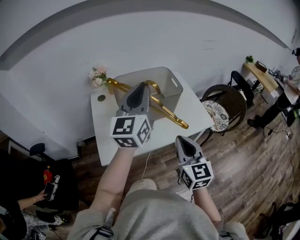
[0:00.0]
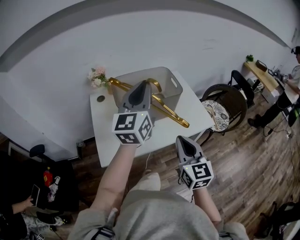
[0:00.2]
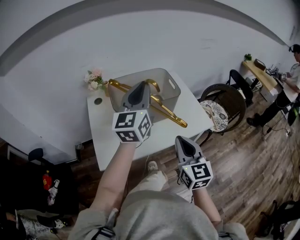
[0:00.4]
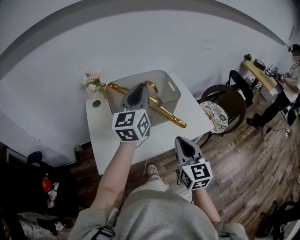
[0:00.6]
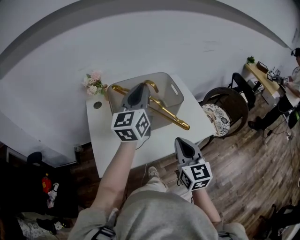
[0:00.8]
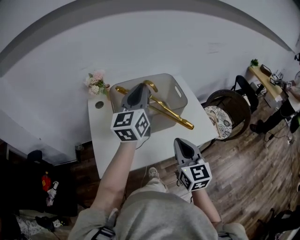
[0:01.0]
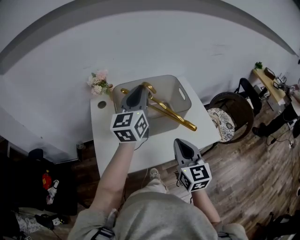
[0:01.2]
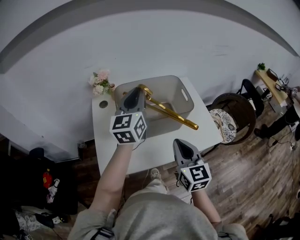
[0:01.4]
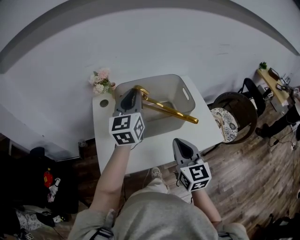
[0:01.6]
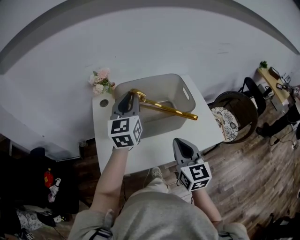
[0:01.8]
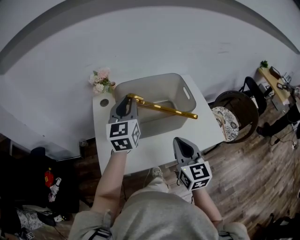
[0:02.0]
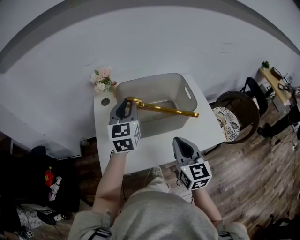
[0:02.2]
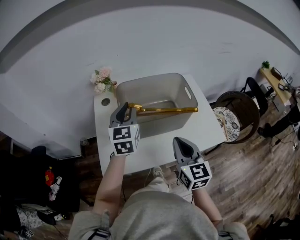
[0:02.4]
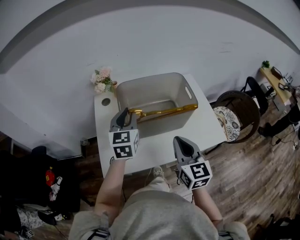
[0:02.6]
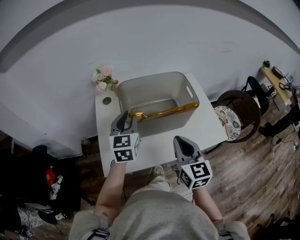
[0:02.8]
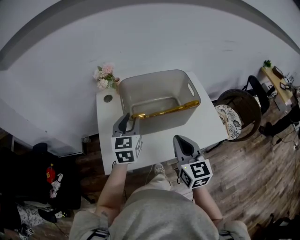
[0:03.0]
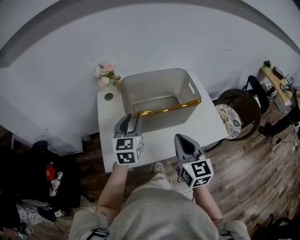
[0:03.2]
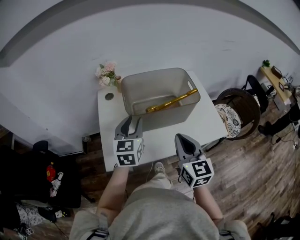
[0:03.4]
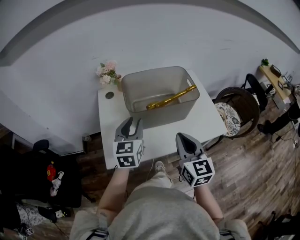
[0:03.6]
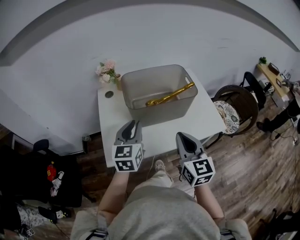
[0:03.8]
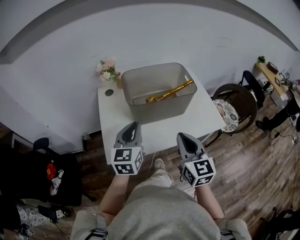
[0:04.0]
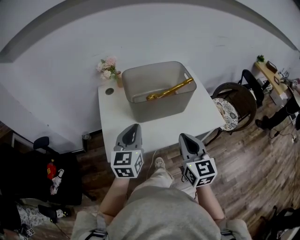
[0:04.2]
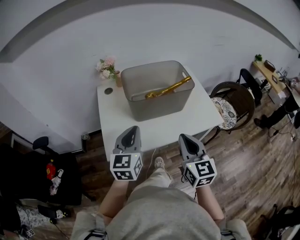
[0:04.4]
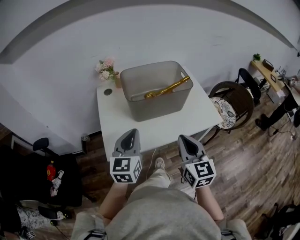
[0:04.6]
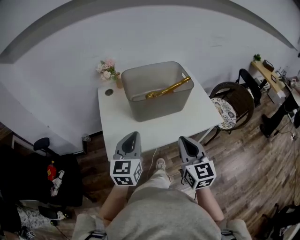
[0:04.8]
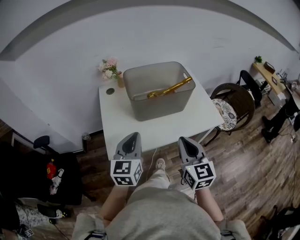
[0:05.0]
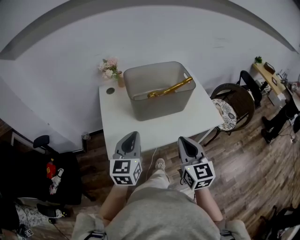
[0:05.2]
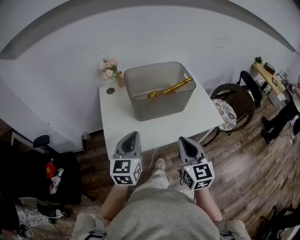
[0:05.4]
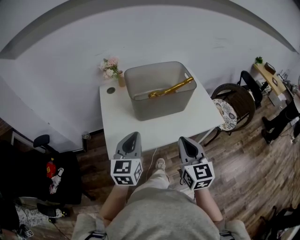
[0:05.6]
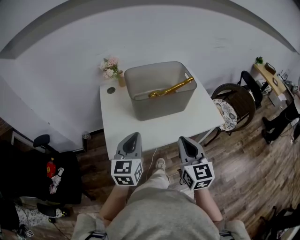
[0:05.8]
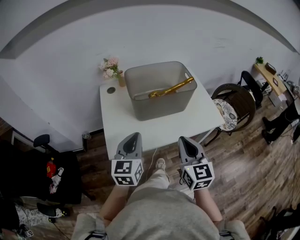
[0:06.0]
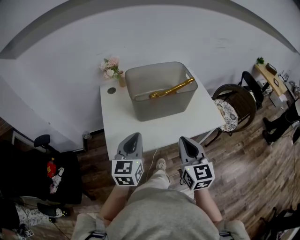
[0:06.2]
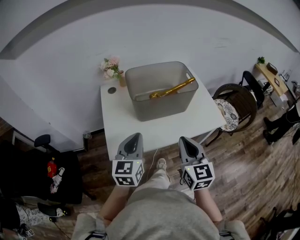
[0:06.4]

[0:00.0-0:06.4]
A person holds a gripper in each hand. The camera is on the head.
0:00.0 to 0:01.6: The left gripper travels forward and downward by about 15 cm. The right gripper heads forward, covering some 10 cm.
0:01.6 to 0:03.2: The left gripper travels downward and backward by some 15 cm, and opens.
0:03.2 to 0:04.8: Both grippers move backward, about 15 cm. The left gripper closes its fingers.
0:04.8 to 0:06.4: The grippers move only a little.

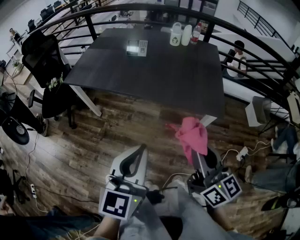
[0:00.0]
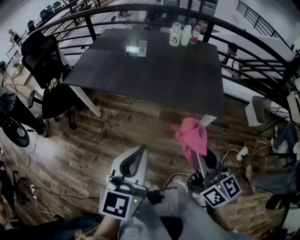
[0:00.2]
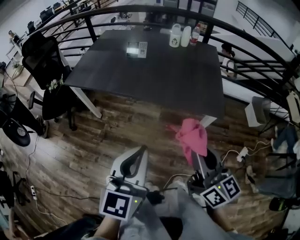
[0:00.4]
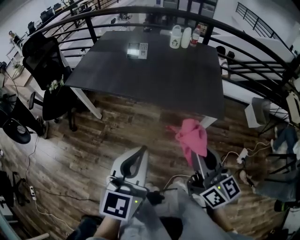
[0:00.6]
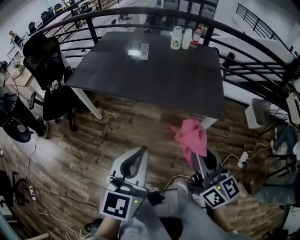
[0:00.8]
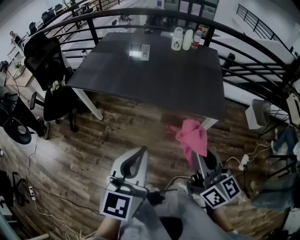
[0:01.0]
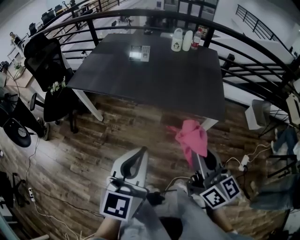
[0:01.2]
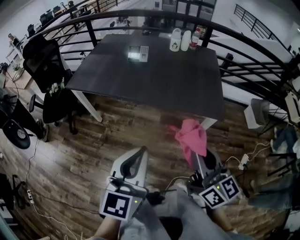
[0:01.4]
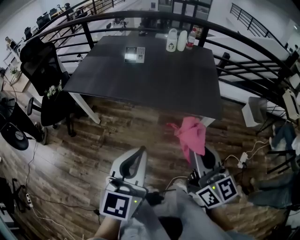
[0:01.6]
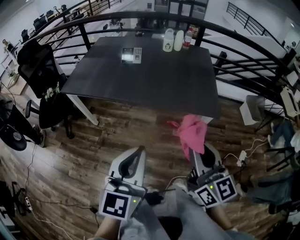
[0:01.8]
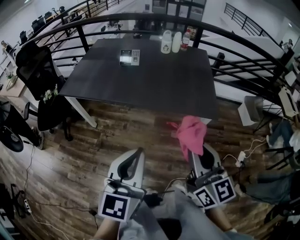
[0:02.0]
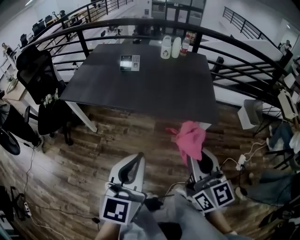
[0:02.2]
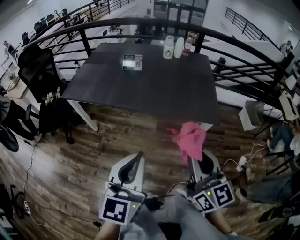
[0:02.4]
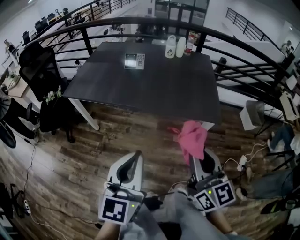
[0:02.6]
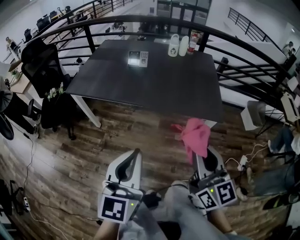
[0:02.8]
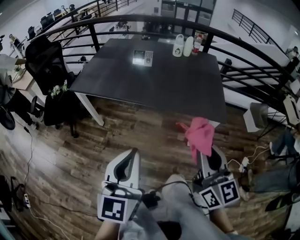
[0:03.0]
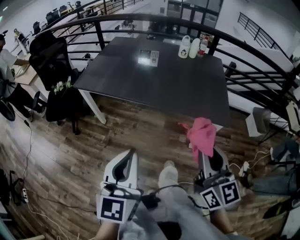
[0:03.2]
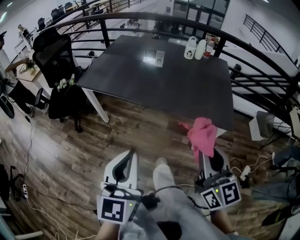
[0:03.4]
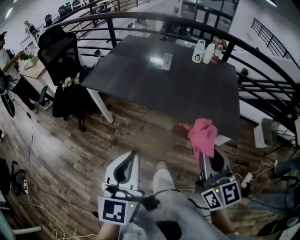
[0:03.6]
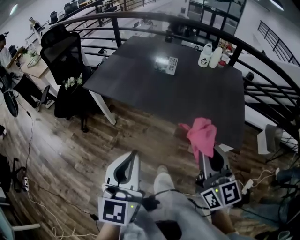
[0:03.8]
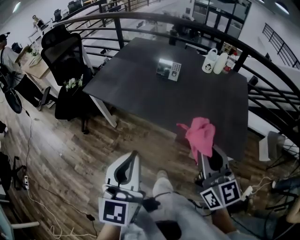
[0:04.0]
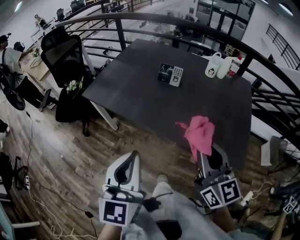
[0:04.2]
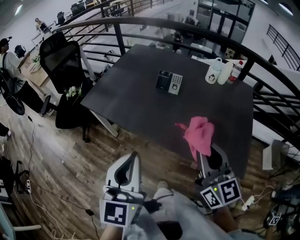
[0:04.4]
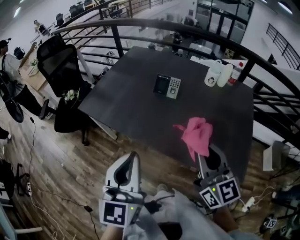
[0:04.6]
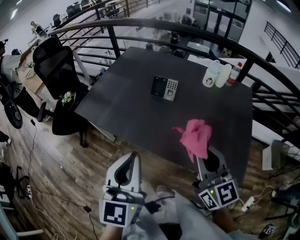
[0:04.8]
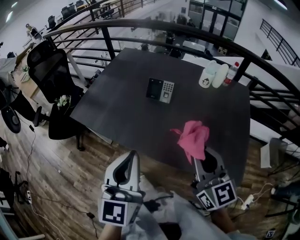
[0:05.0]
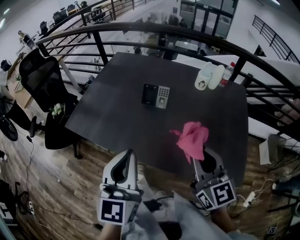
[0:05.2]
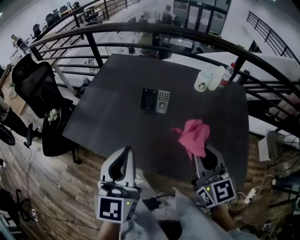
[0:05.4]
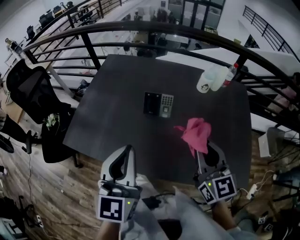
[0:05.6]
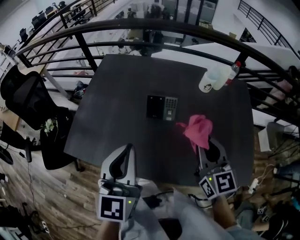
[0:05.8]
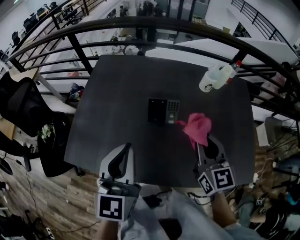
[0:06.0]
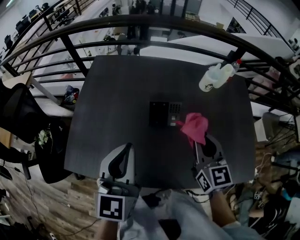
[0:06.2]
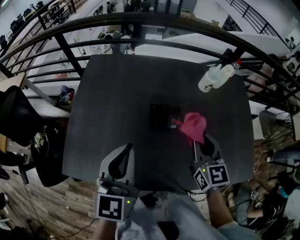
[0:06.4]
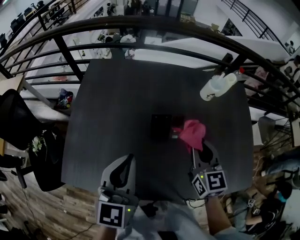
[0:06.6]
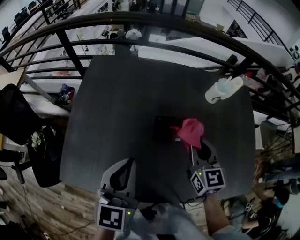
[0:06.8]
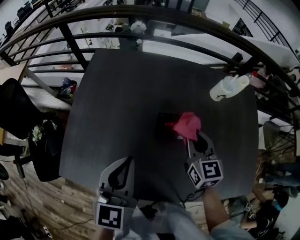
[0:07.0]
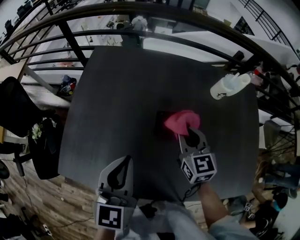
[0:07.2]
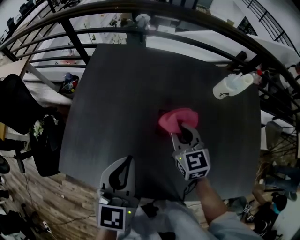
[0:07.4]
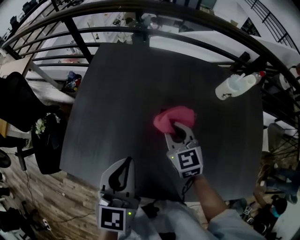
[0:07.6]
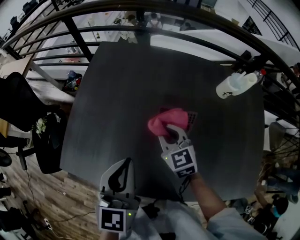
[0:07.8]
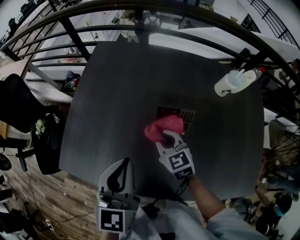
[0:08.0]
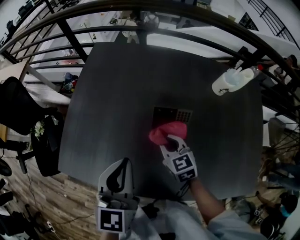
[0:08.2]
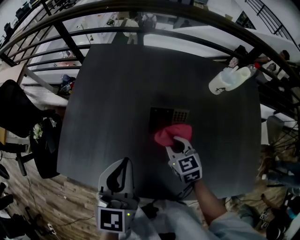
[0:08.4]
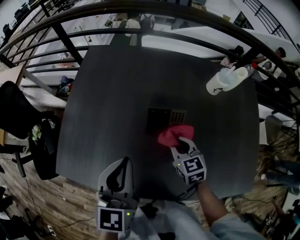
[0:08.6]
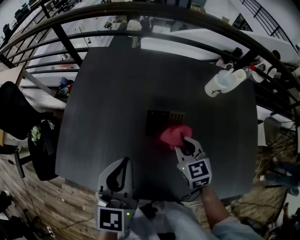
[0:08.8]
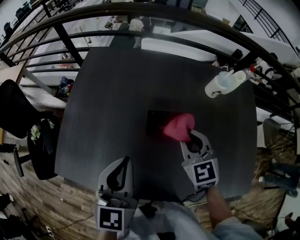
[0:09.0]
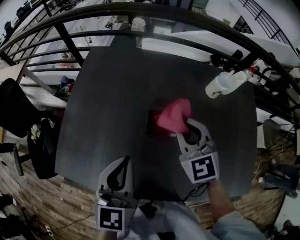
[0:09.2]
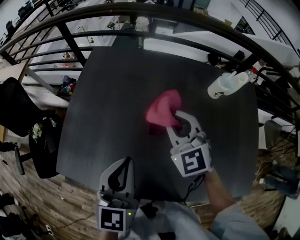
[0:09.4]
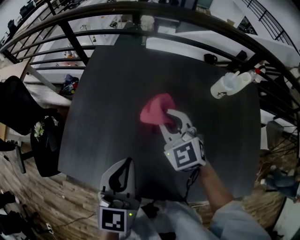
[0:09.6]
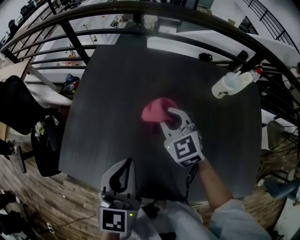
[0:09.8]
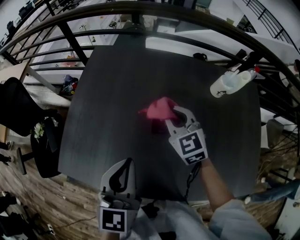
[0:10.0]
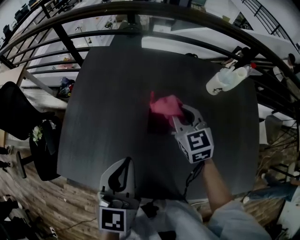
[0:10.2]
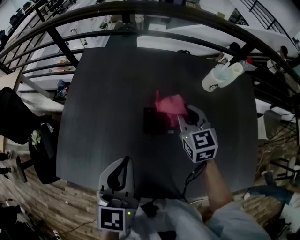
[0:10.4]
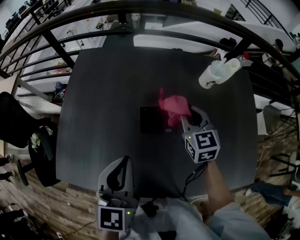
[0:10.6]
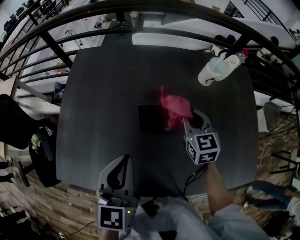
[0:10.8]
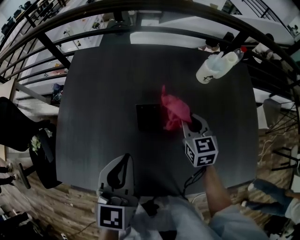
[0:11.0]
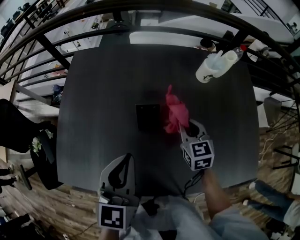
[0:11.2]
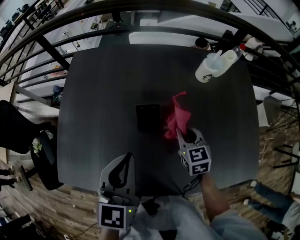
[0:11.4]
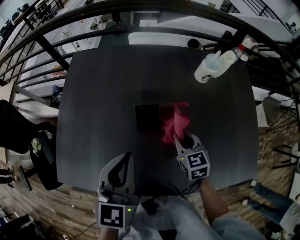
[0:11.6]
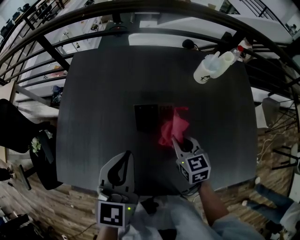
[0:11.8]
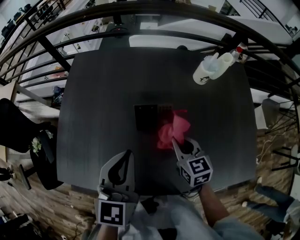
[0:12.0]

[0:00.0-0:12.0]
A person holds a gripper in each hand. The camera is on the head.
0:00.0 to 0:01.6: The grippers make only small movements.
0:01.6 to 0:03.0: The left gripper goes roughly 5 cm to the left.
0:03.0 to 0:04.4: Both grippers move forward, about 25 cm.
0:04.4 to 0:06.0: The grippers both shift forward by about 30 cm. The right gripper swivels approximately 30 degrees.
0:06.0 to 0:07.6: The right gripper goes some 25 cm to the left, forward and downward, and changes its angle by roughly 20 degrees. Meanwhile the left gripper shifts roughly 10 cm downward and forward.
0:07.6 to 0:09.0: The right gripper moves to the right, about 10 cm.
0:09.0 to 0:10.4: The right gripper goes about 5 cm forward, and goes to the left and returns, some 10 cm each way.
0:10.4 to 0:12.0: The right gripper moves backward and downward, roughly 15 cm.

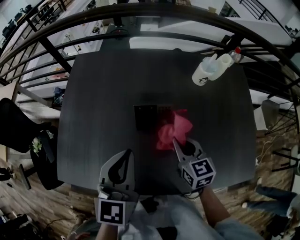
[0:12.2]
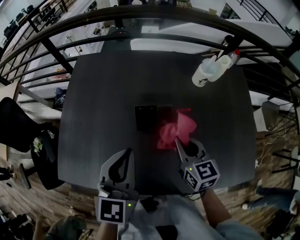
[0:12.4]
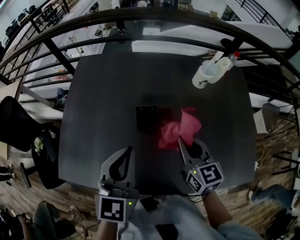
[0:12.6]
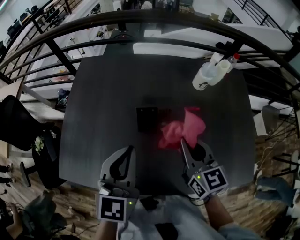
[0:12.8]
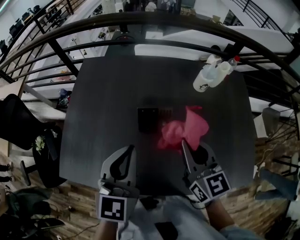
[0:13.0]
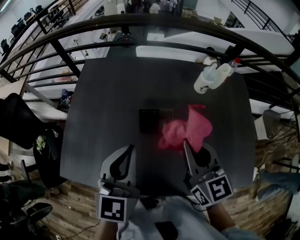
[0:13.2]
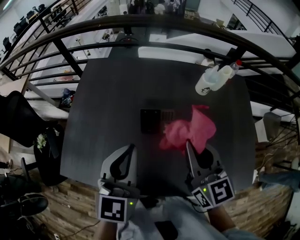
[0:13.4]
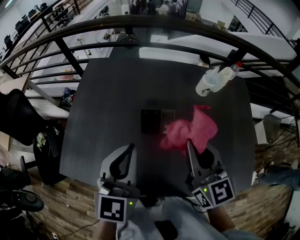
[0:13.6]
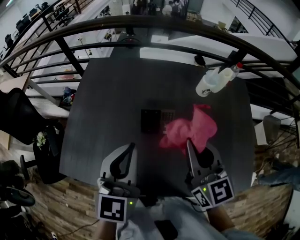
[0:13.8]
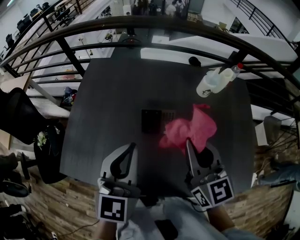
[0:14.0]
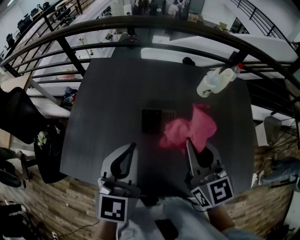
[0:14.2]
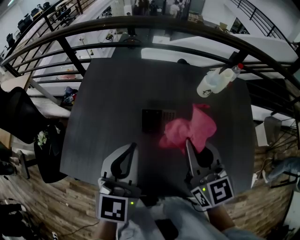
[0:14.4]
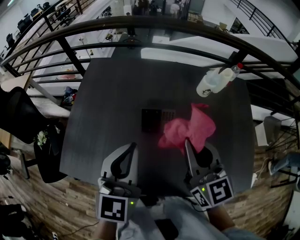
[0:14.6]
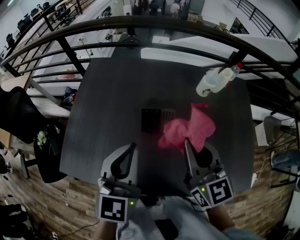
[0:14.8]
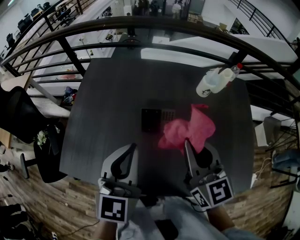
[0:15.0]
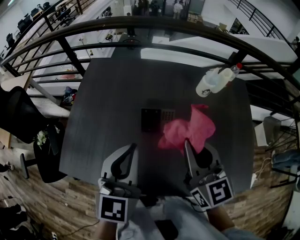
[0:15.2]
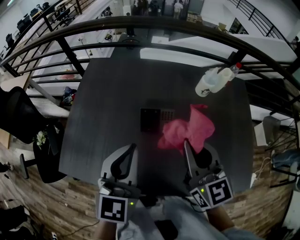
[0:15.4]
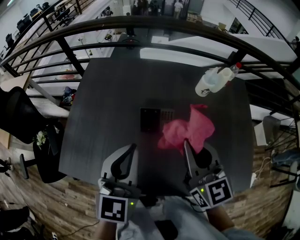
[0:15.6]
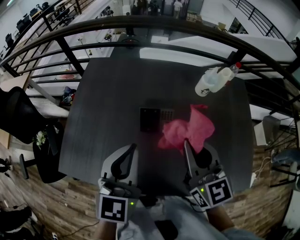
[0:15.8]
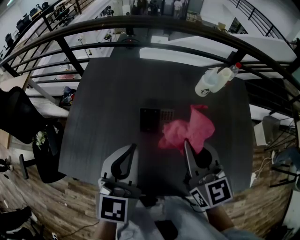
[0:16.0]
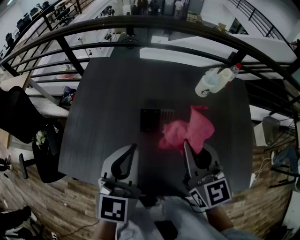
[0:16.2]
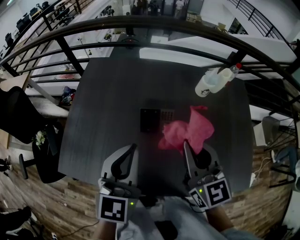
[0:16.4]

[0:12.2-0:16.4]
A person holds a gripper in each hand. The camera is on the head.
0:12.2 to 0:13.6: The right gripper goes roughly 15 cm upward, and swivels approximately 20 degrees, while the left gripper moves upward, approximately 5 cm.
0:13.6 to 0:16.4: Both grippers stay about where they are.

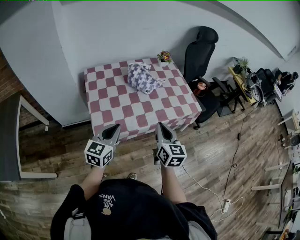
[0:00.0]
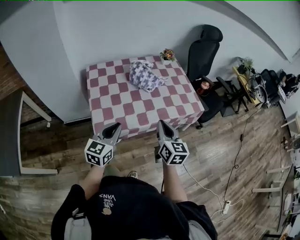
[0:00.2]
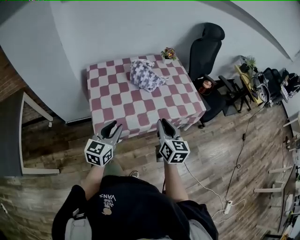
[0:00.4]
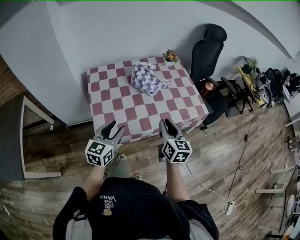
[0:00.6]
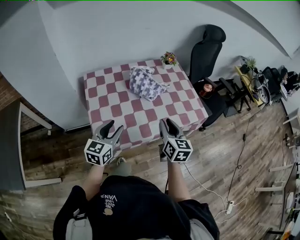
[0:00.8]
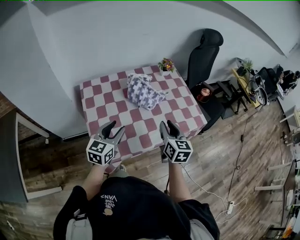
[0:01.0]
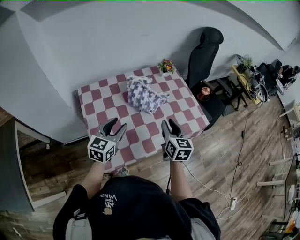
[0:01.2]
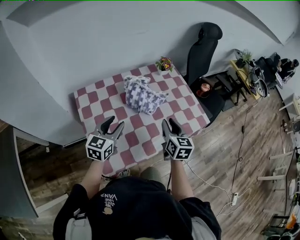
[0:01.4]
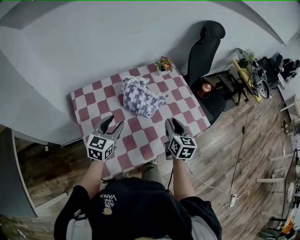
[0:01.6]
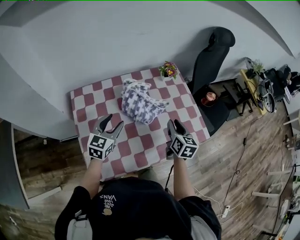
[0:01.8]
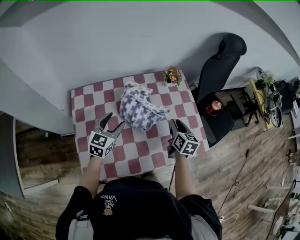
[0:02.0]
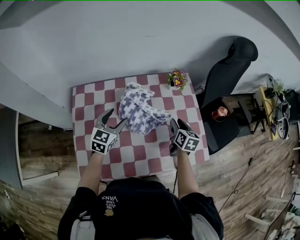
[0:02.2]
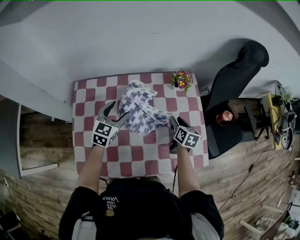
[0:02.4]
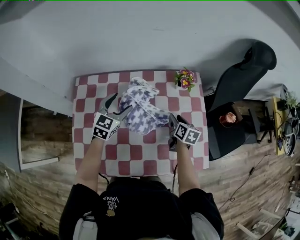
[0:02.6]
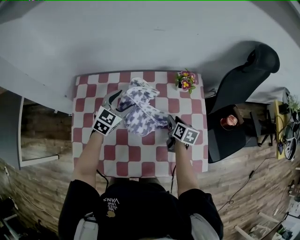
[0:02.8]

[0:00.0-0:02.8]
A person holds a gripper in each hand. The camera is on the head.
0:00.0 to 0:01.4: The grippers both shift forward by some 20 cm. The left gripper opens its fingers. The right gripper opens up.
0:01.4 to 0:02.8: The left gripper shifts roughly 25 cm forward, turns by roughly 20 degrees, and opens up, while the right gripper heads forward and downward, covering approximately 30 cm, and rotates some 30 degrees.
